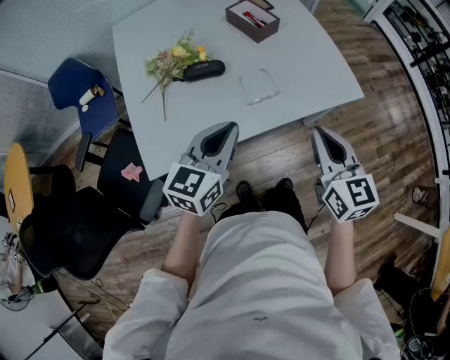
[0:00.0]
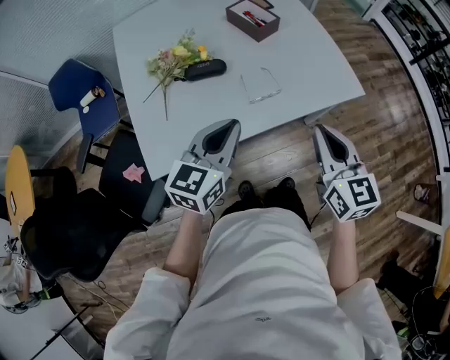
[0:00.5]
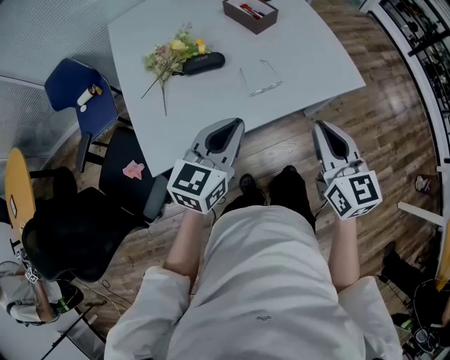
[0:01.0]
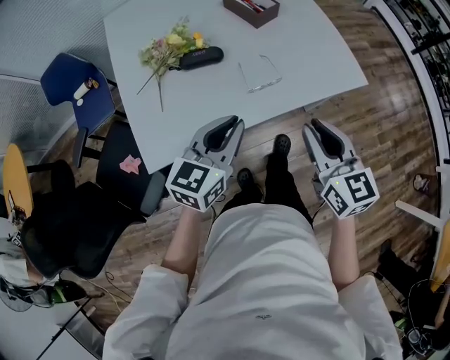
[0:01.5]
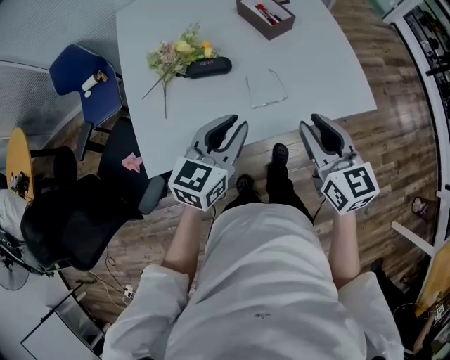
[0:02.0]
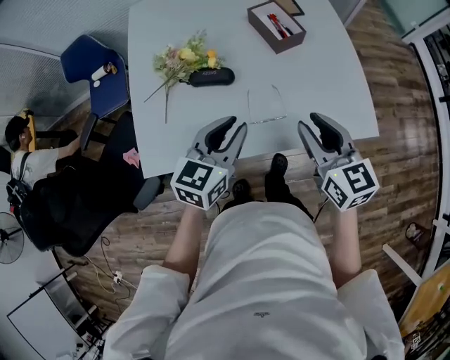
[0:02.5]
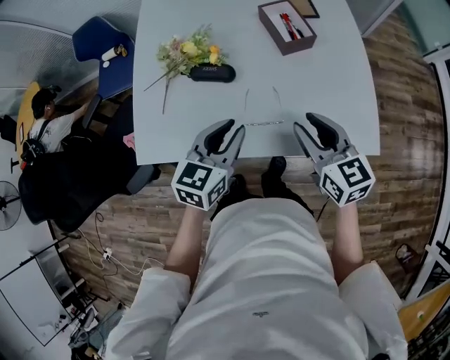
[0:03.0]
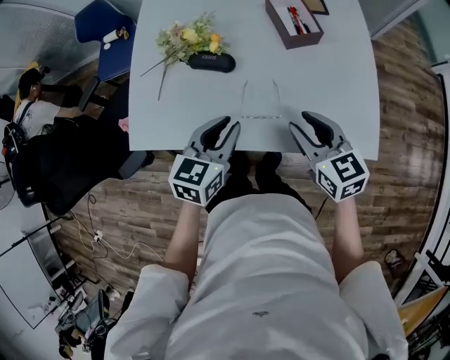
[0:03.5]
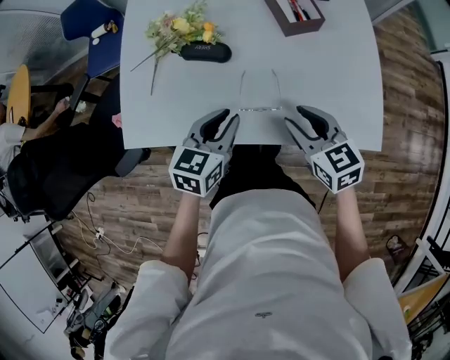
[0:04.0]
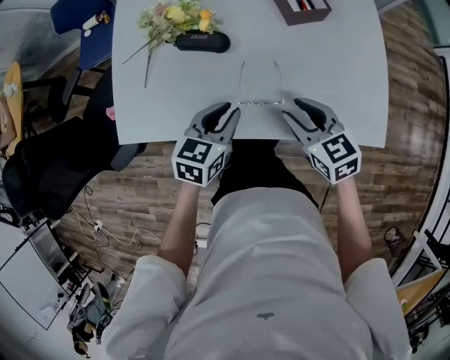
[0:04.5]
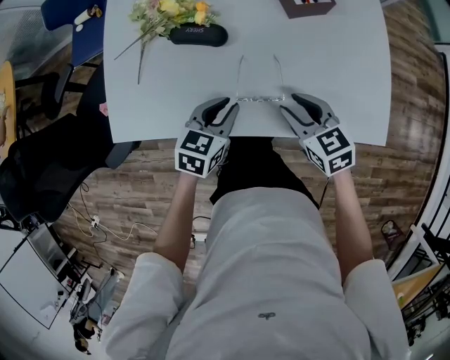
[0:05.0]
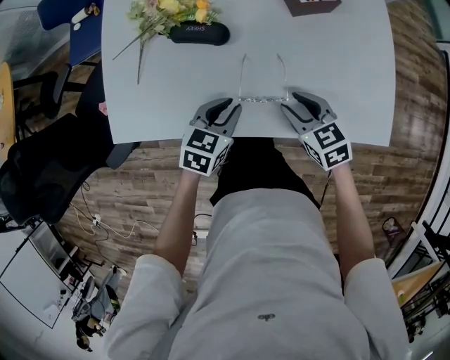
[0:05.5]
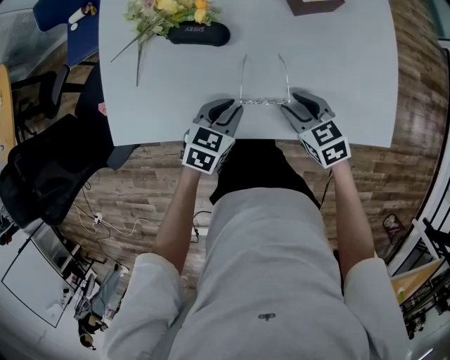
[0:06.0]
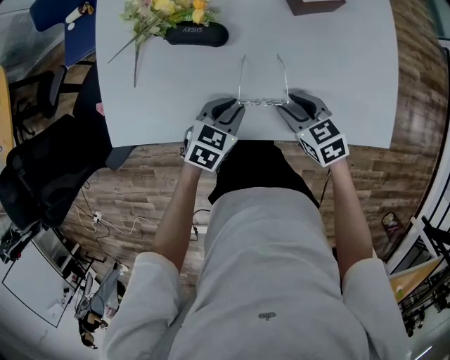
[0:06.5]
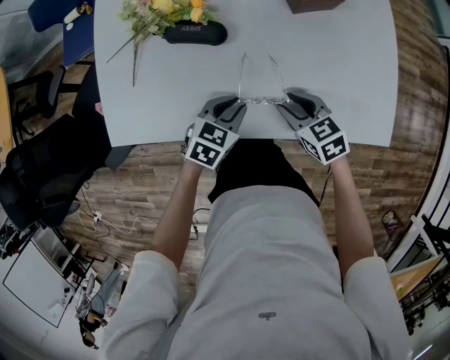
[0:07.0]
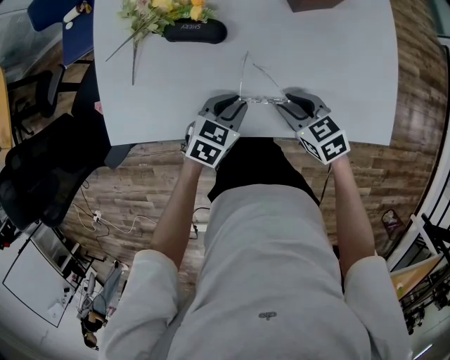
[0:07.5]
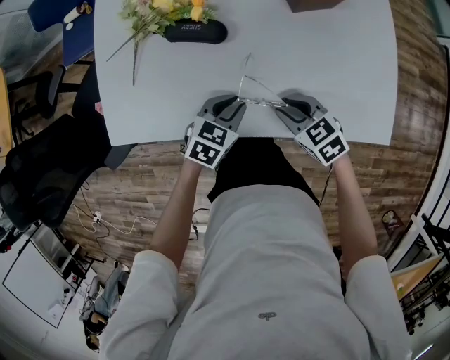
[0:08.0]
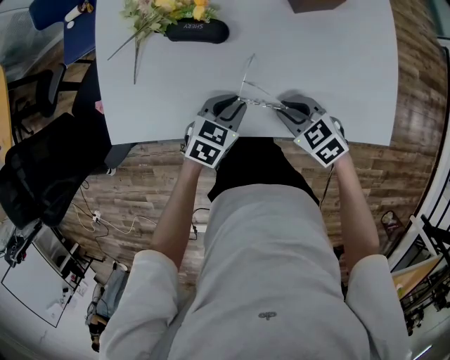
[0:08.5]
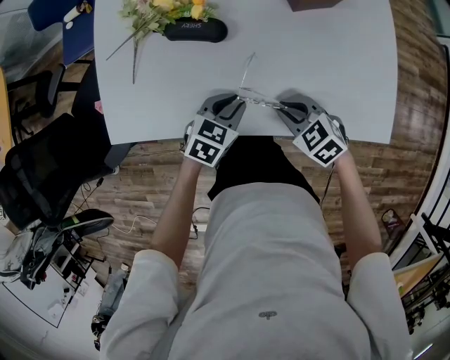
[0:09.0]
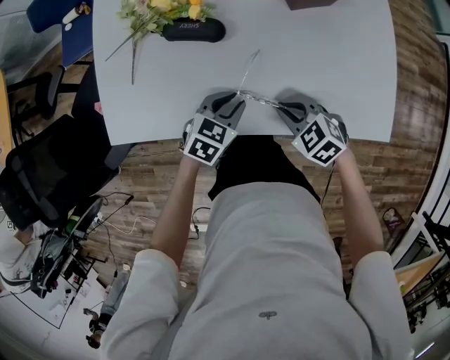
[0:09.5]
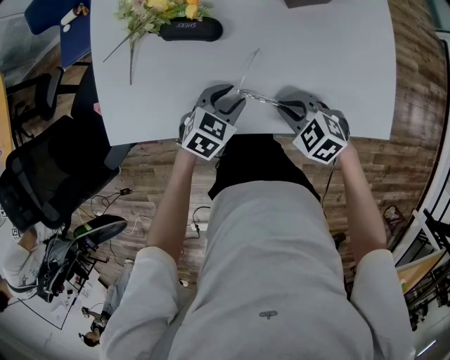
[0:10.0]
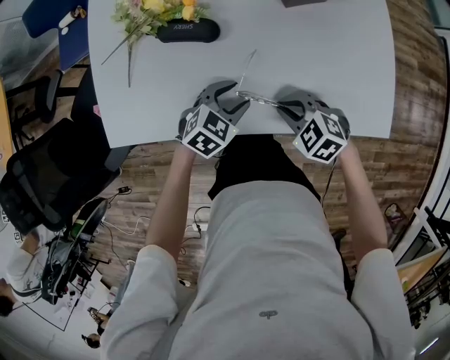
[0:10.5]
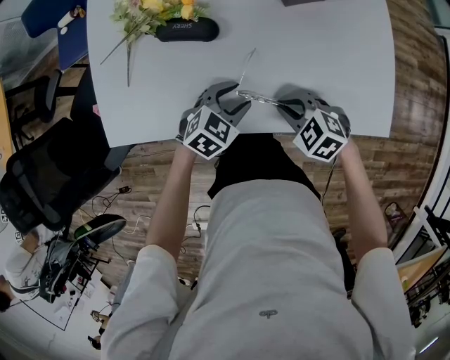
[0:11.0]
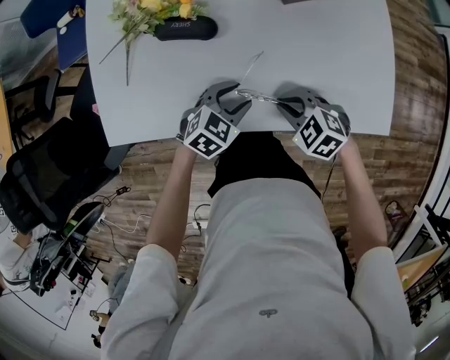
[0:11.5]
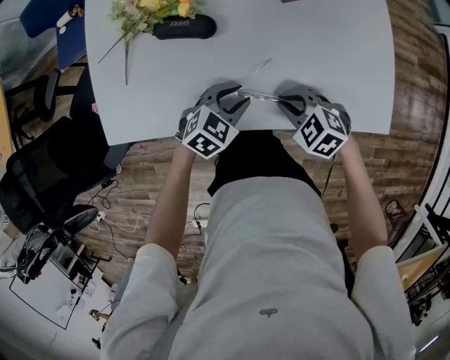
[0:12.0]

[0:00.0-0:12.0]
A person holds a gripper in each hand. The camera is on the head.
0:00.0 to 0:02.0: The grippers both shift forward by some 5 cm. The right gripper opens.
0:02.0 to 0:04.0: Both grippers move downward and forward, approximately 15 cm. The right gripper rotates roughly 30 degrees, while the left gripper rotates about 20 degrees.
0:04.0 to 0:06.0: Both grippers travel together downward, approximately 15 cm.
0:06.0 to 0:08.0: The grippers stay close to where they were, moving slightly.
0:08.0 to 0:10.0: The right gripper changes its angle by approximately 20 degrees, and closes.
0:10.0 to 0:12.0: The grippers stay close to where they were, moving slightly.

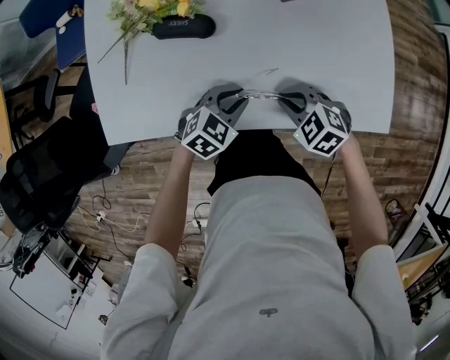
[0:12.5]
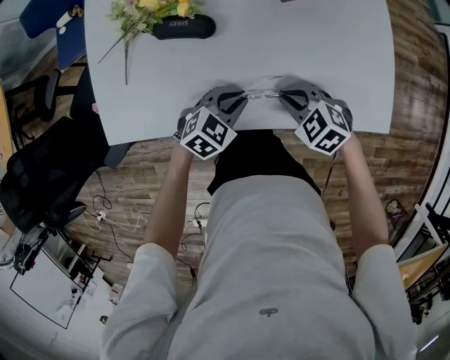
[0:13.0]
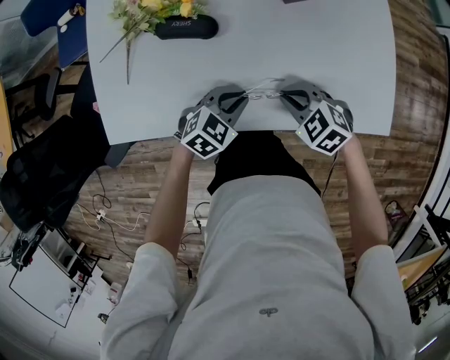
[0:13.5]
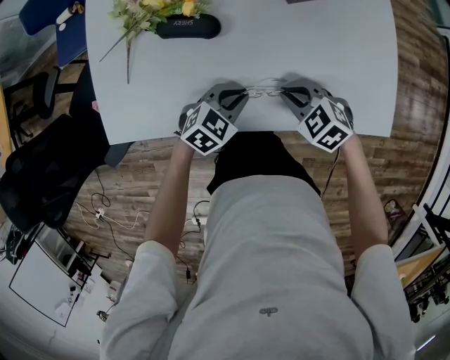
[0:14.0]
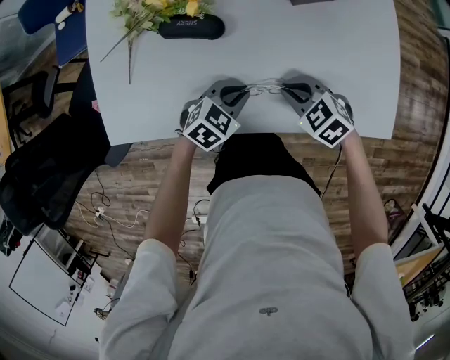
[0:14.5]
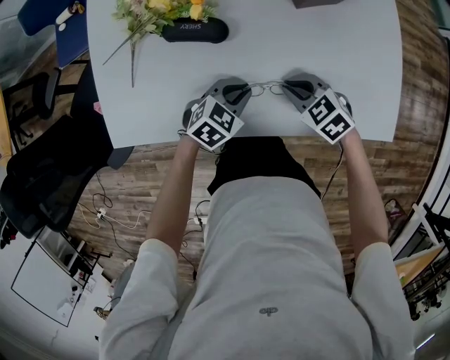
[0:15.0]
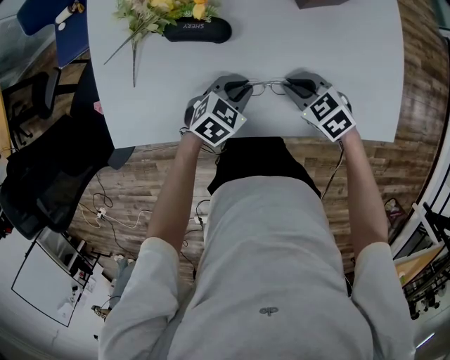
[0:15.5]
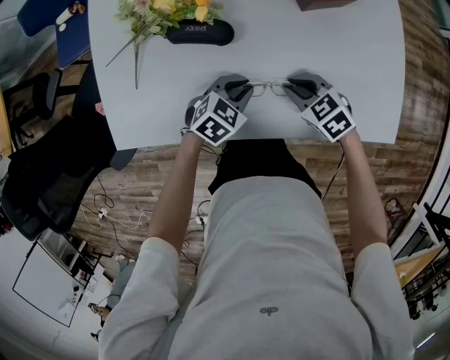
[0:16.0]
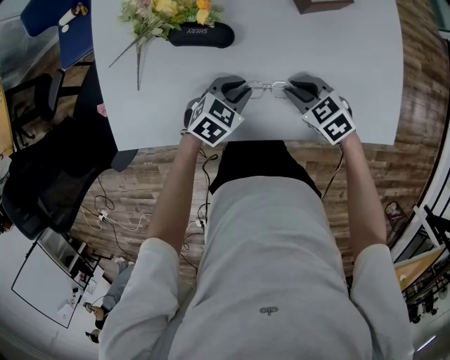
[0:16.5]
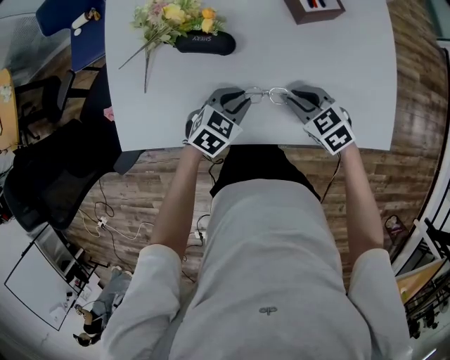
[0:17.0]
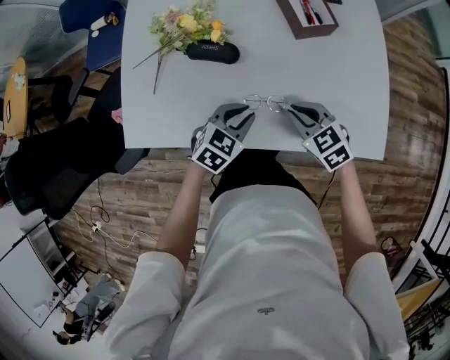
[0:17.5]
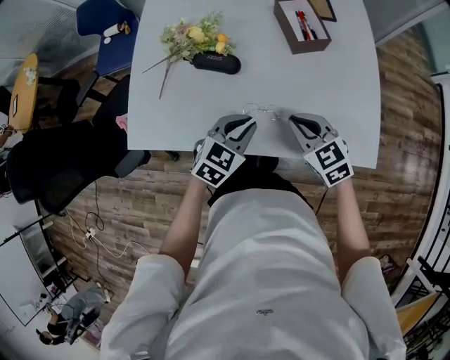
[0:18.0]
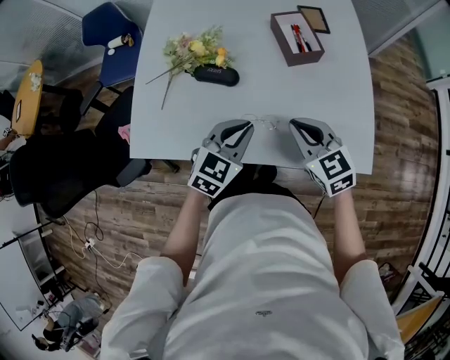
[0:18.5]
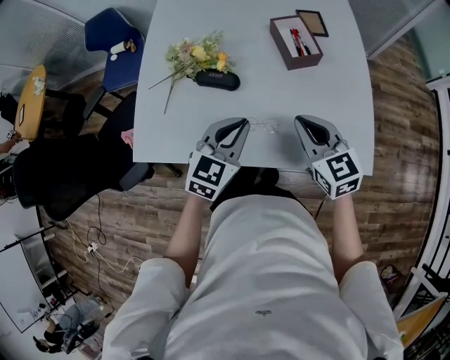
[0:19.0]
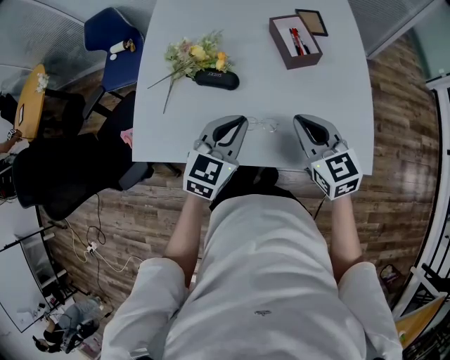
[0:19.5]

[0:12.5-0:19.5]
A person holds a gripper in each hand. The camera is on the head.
0:12.5 to 0:14.5: The grippers stay close to where they were, moving slightly.
0:14.5 to 0:16.0: There are only small adjustments of the grippers.
0:16.0 to 0:17.5: Both grippers move upward, approximately 10 cm.
0:17.5 to 0:19.5: The two grippers go roughly 15 cm upward. The left gripper changes its angle by some 30 degrees. Meanwhile the right gripper changes its angle by about 30 degrees.

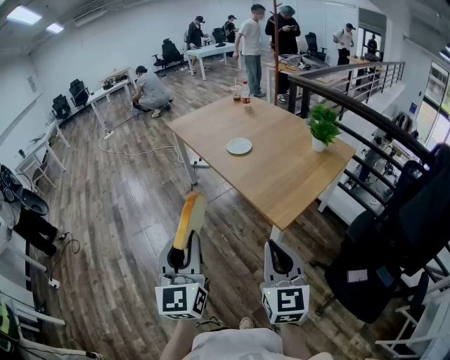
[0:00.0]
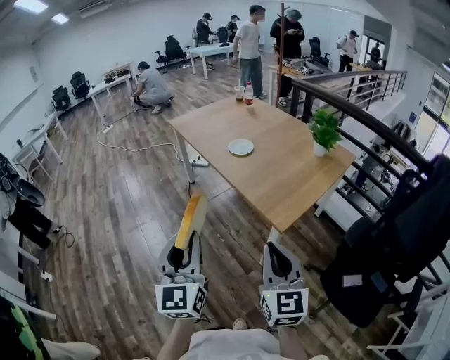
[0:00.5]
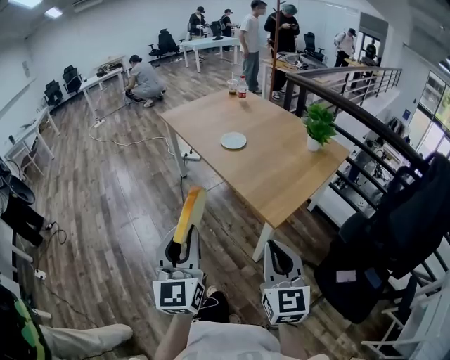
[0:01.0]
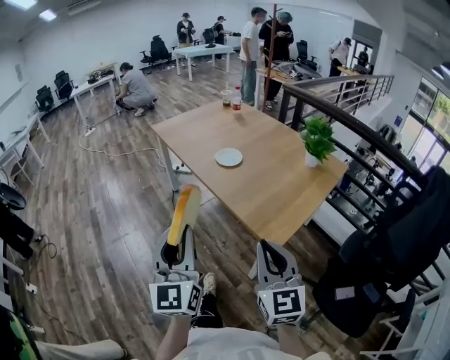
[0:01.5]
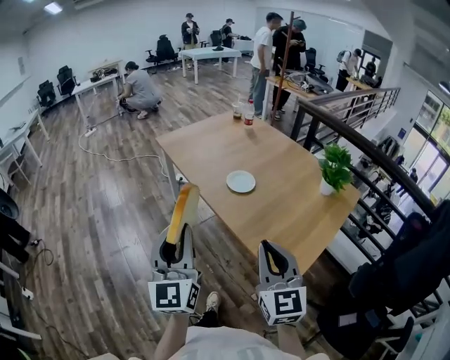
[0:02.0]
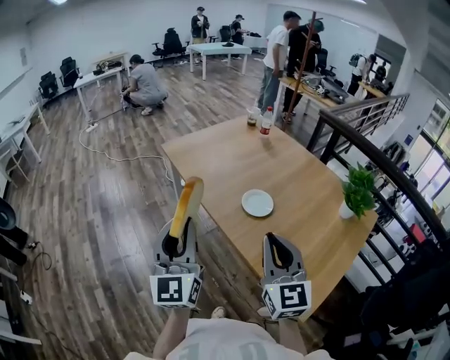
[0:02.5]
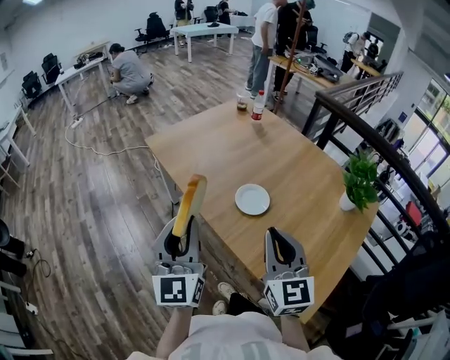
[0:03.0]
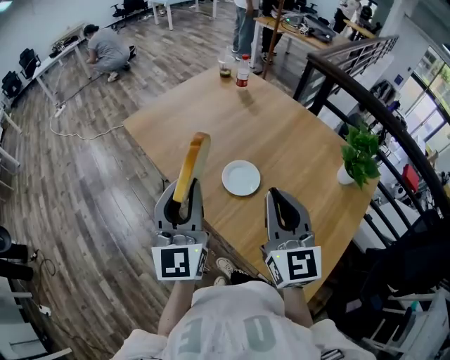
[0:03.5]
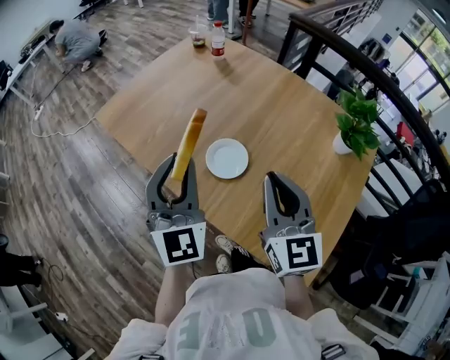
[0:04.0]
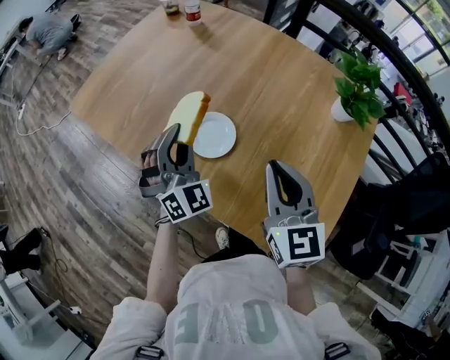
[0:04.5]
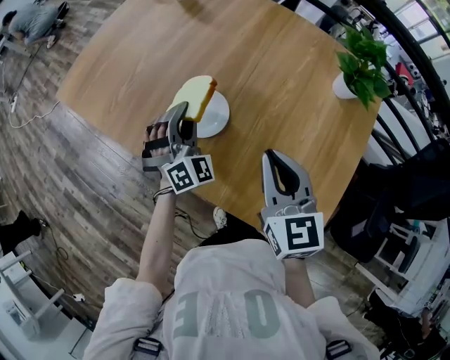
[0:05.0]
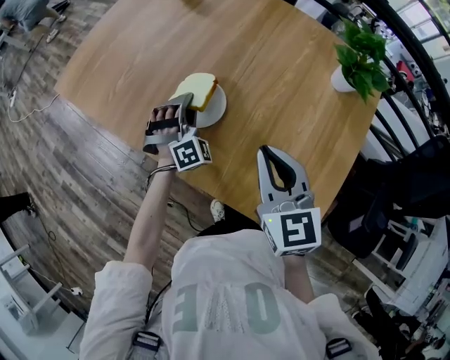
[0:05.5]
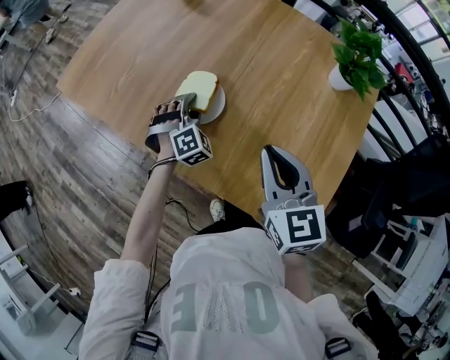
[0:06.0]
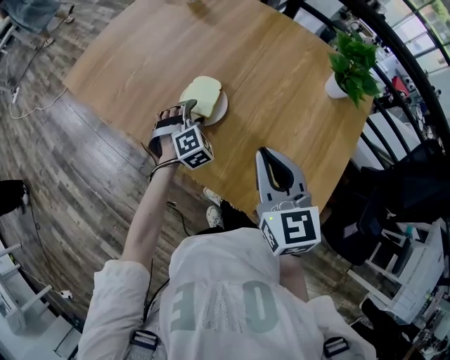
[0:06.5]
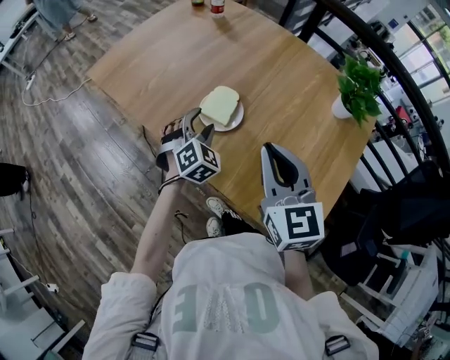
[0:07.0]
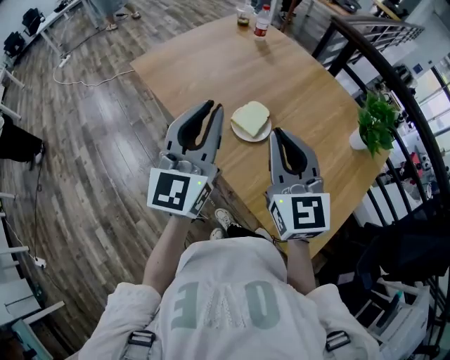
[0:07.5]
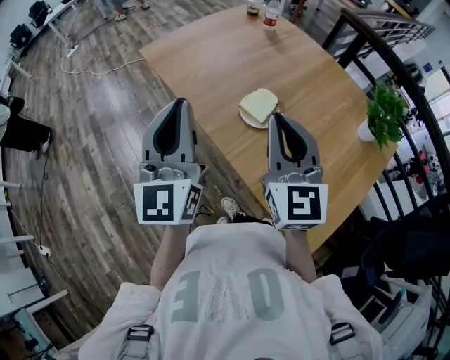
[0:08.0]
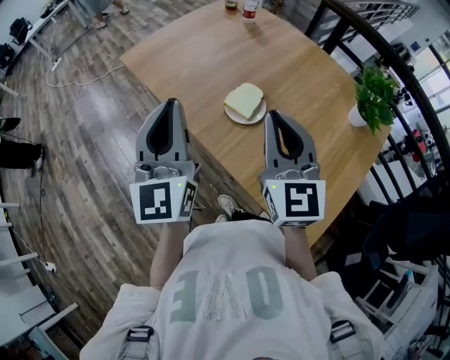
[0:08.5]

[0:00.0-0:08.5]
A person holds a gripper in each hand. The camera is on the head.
0:00.0 to 0:02.0: The two grippers go some 25 cm forward.
0:02.0 to 0:04.0: The two grippers go approximately 35 cm forward. The left gripper rotates about 30 degrees.
0:04.0 to 0:06.5: The left gripper heads downward, covering some 30 cm, tips its fingers downward by approximately 50 degrees, and opens up; the right gripper goes about 10 cm downward.
0:06.5 to 0:08.5: The right gripper heads upward and to the left, covering about 15 cm, and changes its angle by approximately 20 degrees; the left gripper goes roughly 40 cm upward, to the left and backward, points its fingers about 60 degrees further upward, and closes up.
